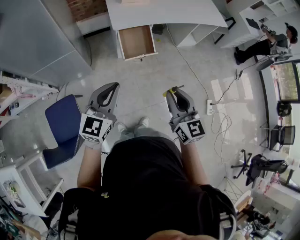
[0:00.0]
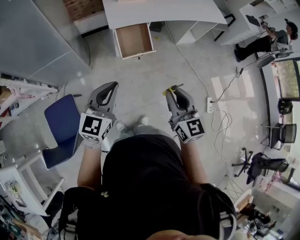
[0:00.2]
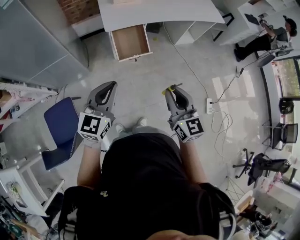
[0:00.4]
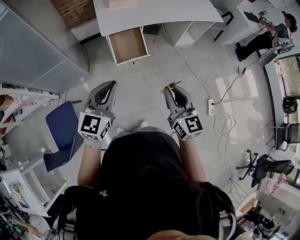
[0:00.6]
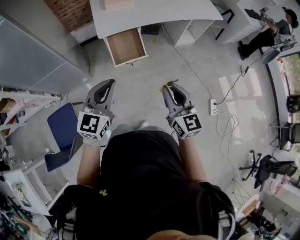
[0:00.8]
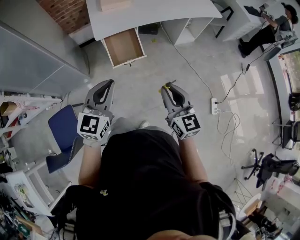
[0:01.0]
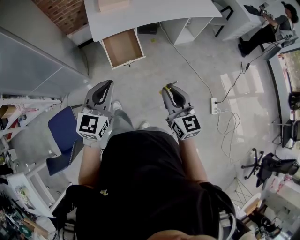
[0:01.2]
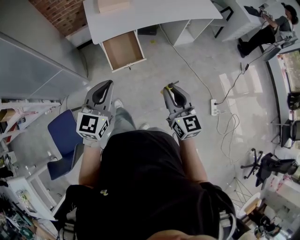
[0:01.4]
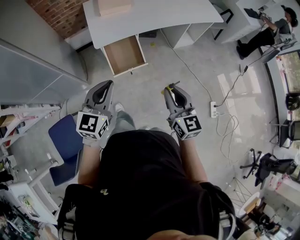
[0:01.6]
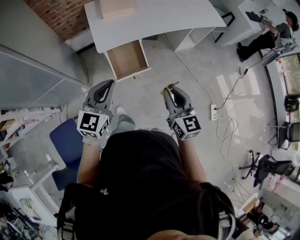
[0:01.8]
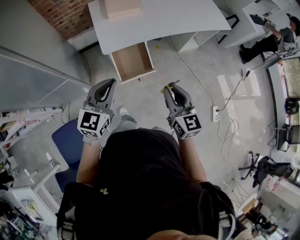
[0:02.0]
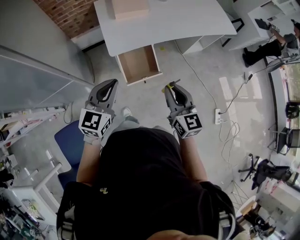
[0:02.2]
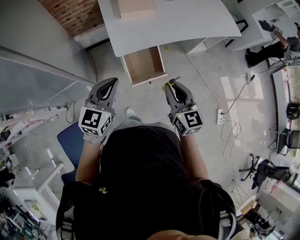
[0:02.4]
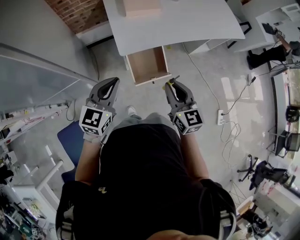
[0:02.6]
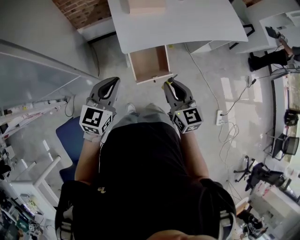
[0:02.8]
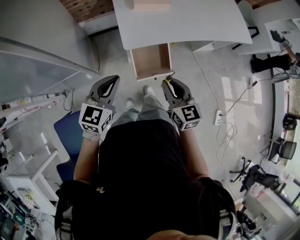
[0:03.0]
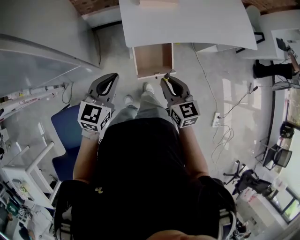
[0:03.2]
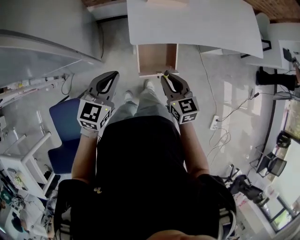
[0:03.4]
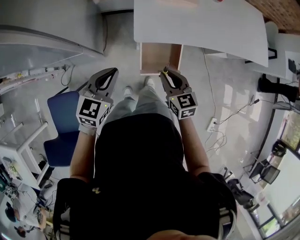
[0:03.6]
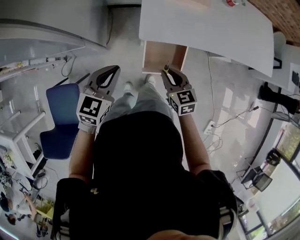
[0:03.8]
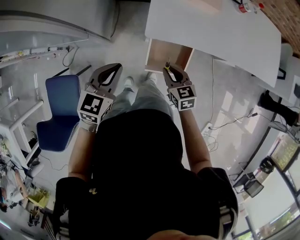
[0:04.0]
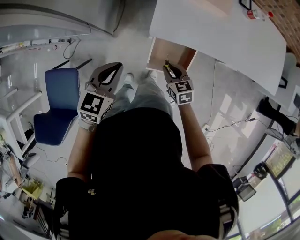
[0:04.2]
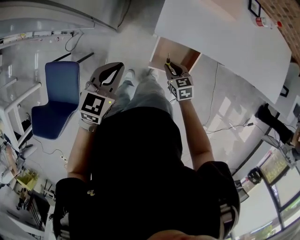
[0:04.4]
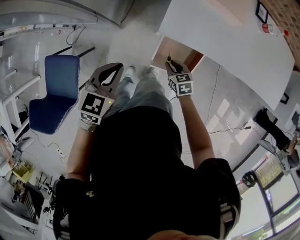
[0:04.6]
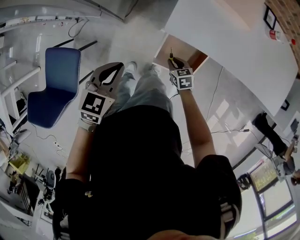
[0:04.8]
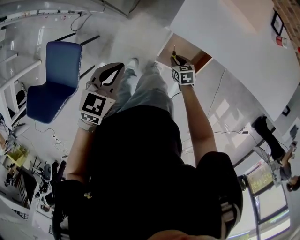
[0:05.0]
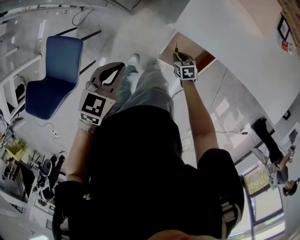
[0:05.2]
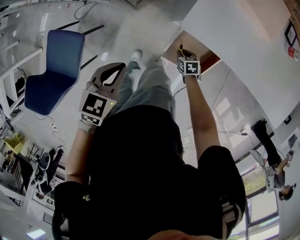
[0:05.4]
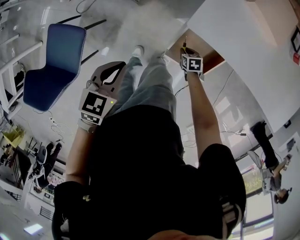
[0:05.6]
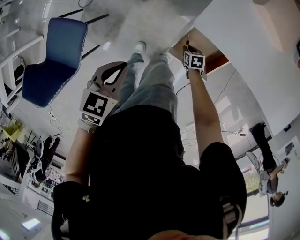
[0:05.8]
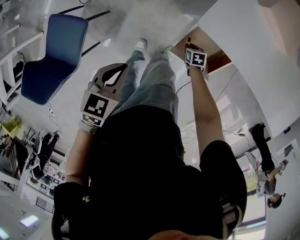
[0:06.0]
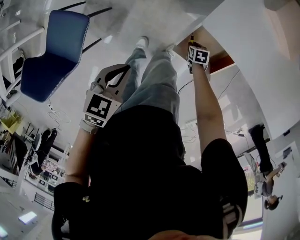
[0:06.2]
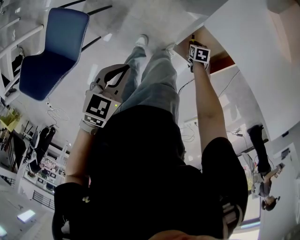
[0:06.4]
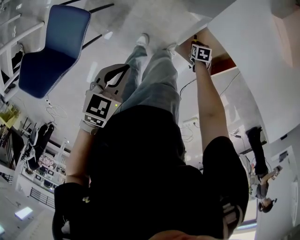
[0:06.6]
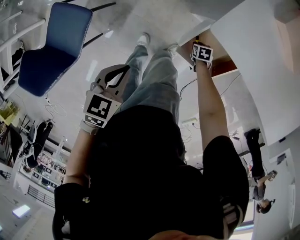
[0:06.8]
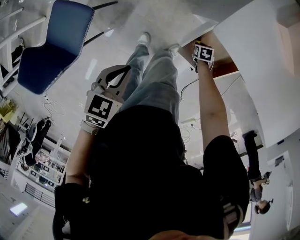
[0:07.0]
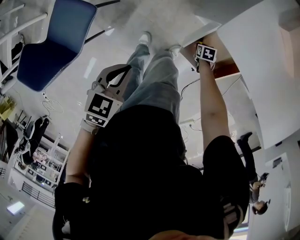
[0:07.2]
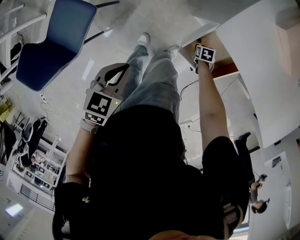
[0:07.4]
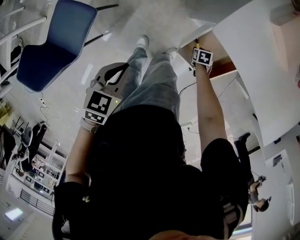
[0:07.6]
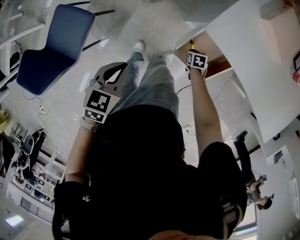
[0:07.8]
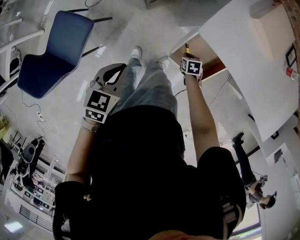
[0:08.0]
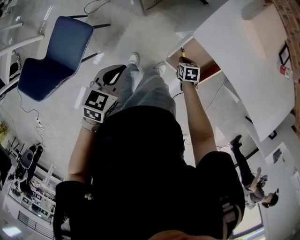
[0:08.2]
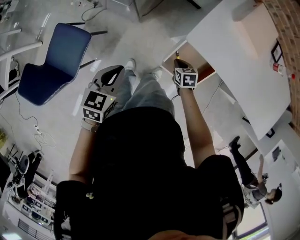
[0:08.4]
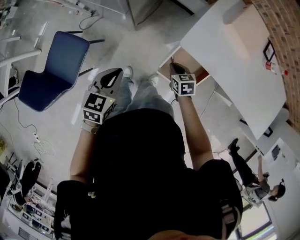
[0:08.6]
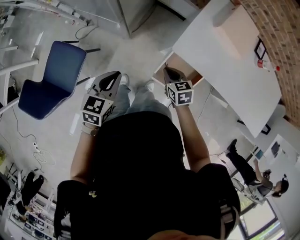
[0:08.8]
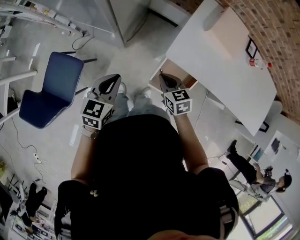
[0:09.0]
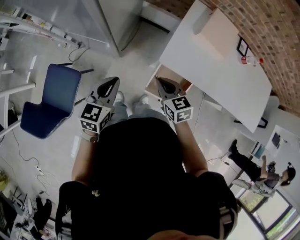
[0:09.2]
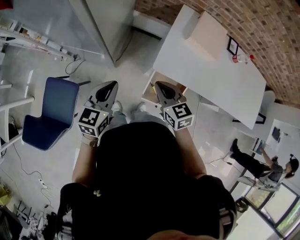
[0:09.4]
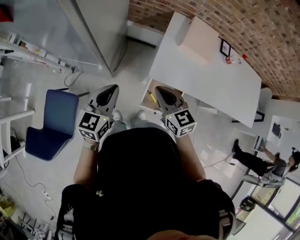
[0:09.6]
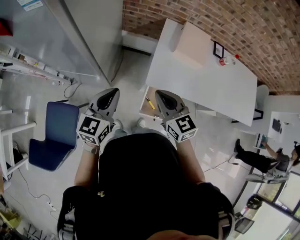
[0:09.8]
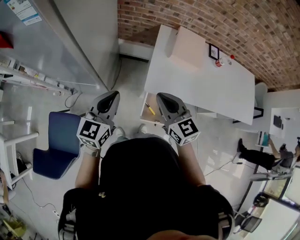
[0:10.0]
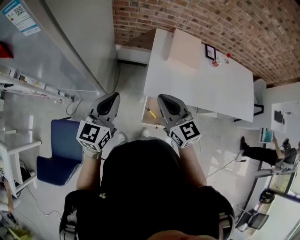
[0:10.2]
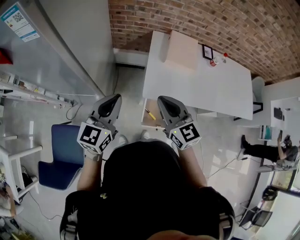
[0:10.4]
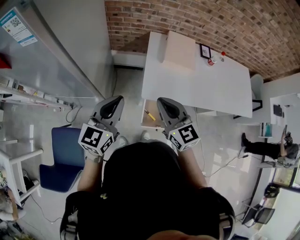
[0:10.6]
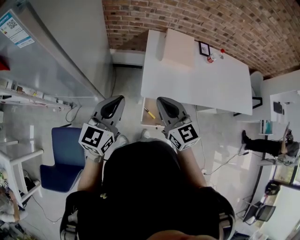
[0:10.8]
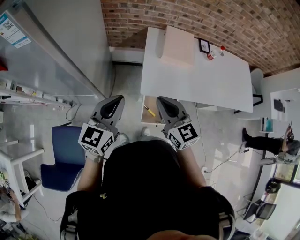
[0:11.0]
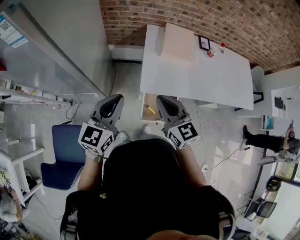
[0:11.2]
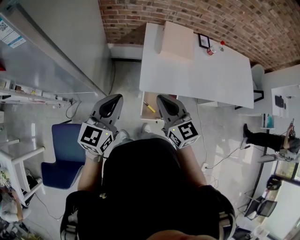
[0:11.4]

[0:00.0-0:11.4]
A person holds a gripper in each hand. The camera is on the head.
0.0 to 1.4 s: The grippers both shift to the right and forward by some 20 cm.
1.4 to 2.8 s: The grippers both shift to the left and forward by about 30 cm.
2.8 to 4.2 s: The right gripper heads downward, covering about 25 cm, and turns by some 40 degrees, while the left gripper moves downward, approximately 10 cm, and changes its angle by approximately 30 degrees.
4.2 to 5.6 s: The left gripper moves downward, some 10 cm, and rotates about 20 degrees. Meanwhile the right gripper shifts some 25 cm downward, and rotates about 30 degrees.
5.6 to 7.2 s: The right gripper travels downward by some 10 cm, while the left gripper changes place by some 10 cm.
7.2 to 8.6 s: The left gripper moves upward, approximately 10 cm. The right gripper goes about 30 cm upward, rotates some 30 degrees, and closes.
8.6 to 10.0 s: The left gripper goes roughly 25 cm upward and forward, and turns by some 30 degrees. The right gripper travels upward by some 35 cm, and points its fingers about 40 degrees further upward.
10.0 to 11.4 s: The left gripper shifts by roughly 5 cm.

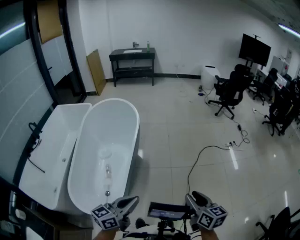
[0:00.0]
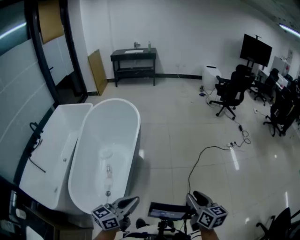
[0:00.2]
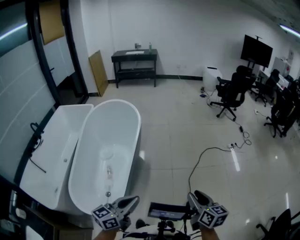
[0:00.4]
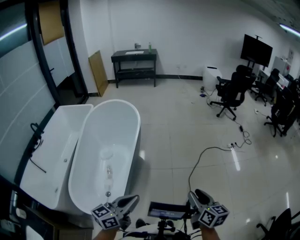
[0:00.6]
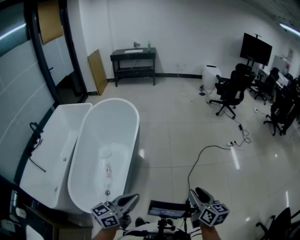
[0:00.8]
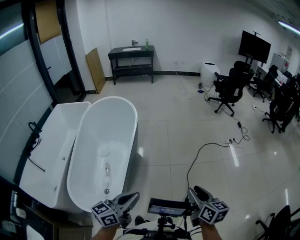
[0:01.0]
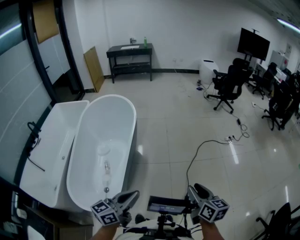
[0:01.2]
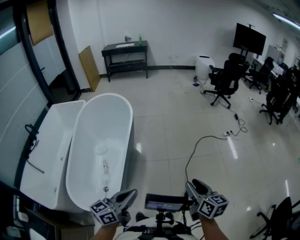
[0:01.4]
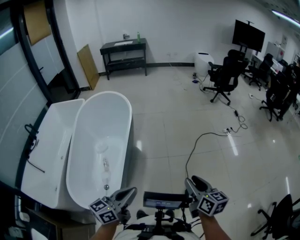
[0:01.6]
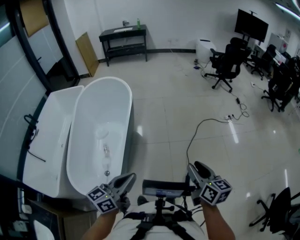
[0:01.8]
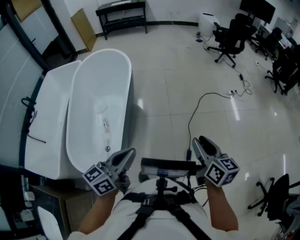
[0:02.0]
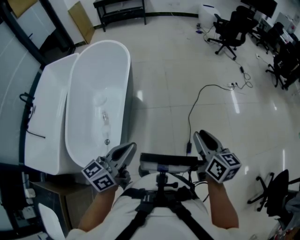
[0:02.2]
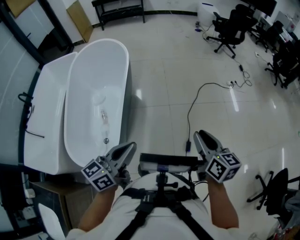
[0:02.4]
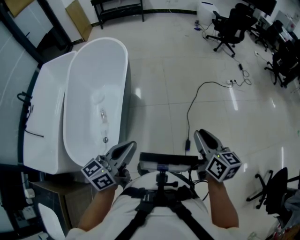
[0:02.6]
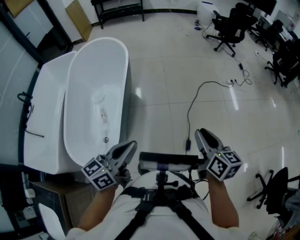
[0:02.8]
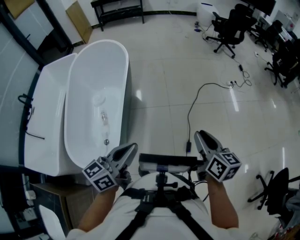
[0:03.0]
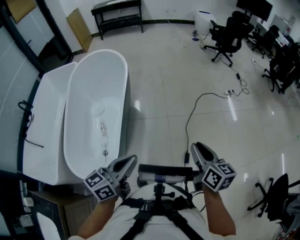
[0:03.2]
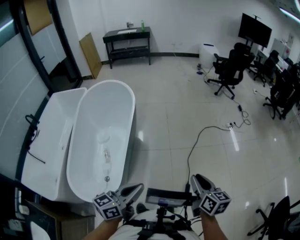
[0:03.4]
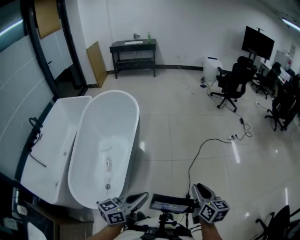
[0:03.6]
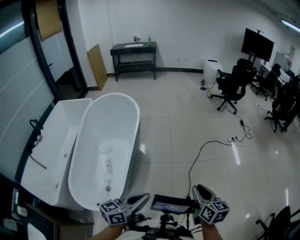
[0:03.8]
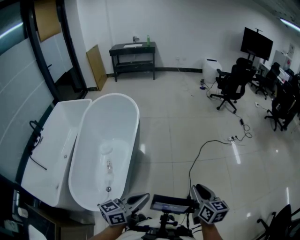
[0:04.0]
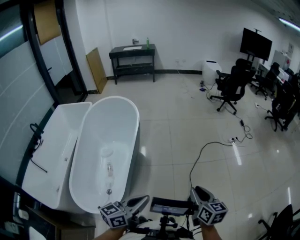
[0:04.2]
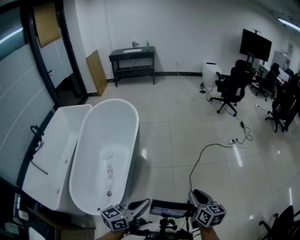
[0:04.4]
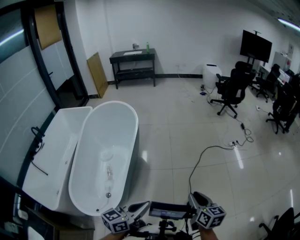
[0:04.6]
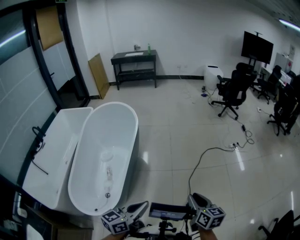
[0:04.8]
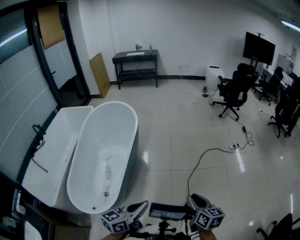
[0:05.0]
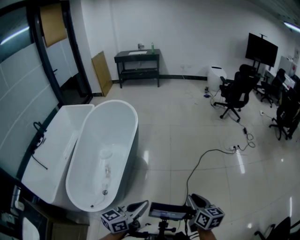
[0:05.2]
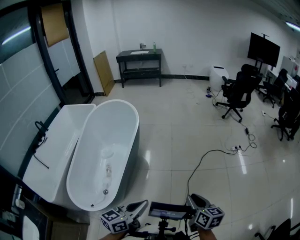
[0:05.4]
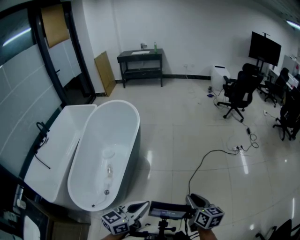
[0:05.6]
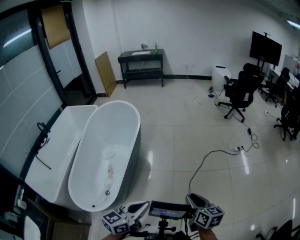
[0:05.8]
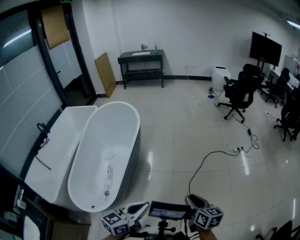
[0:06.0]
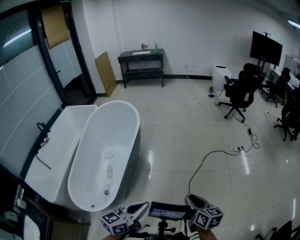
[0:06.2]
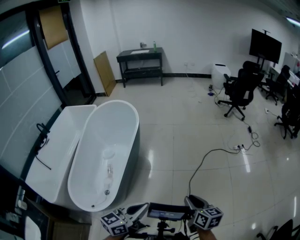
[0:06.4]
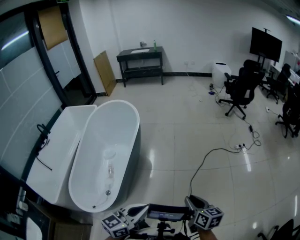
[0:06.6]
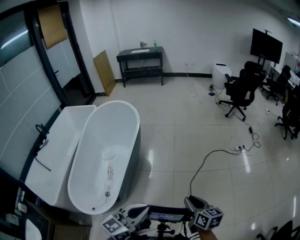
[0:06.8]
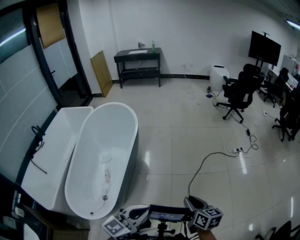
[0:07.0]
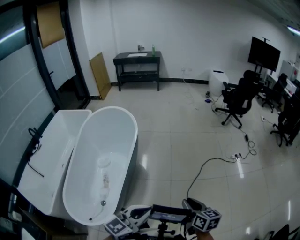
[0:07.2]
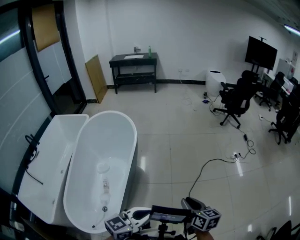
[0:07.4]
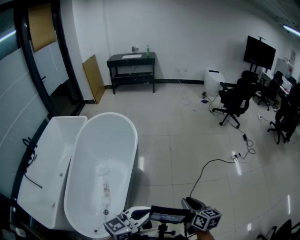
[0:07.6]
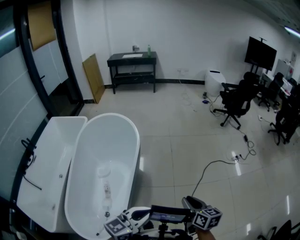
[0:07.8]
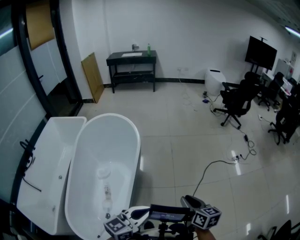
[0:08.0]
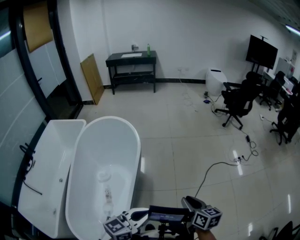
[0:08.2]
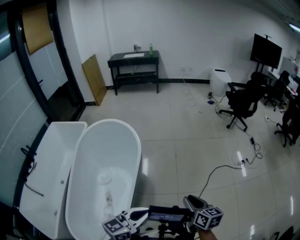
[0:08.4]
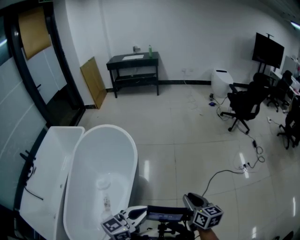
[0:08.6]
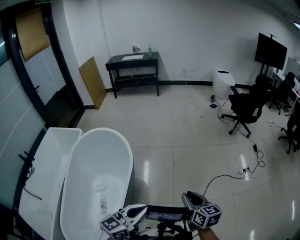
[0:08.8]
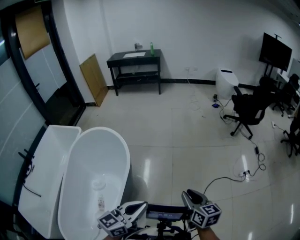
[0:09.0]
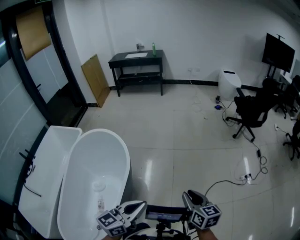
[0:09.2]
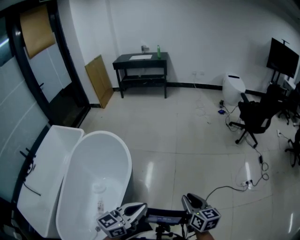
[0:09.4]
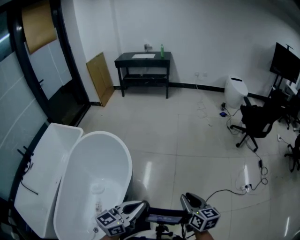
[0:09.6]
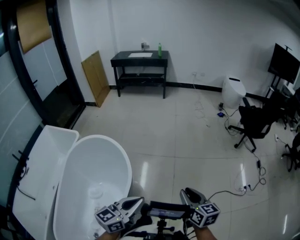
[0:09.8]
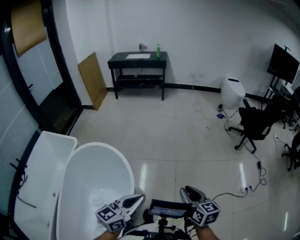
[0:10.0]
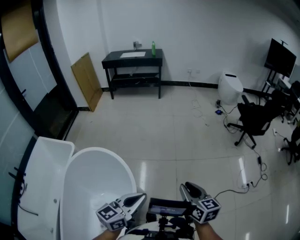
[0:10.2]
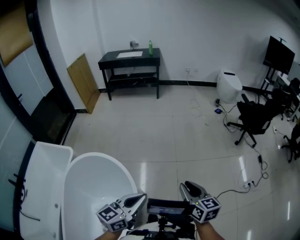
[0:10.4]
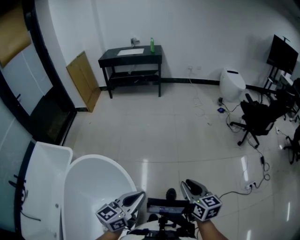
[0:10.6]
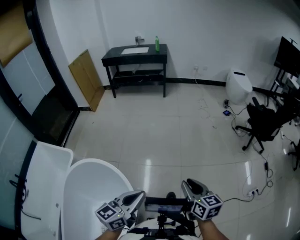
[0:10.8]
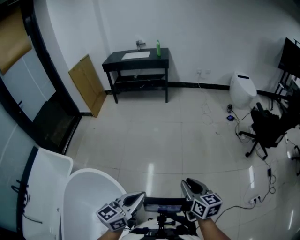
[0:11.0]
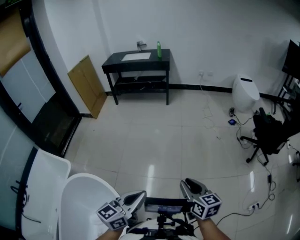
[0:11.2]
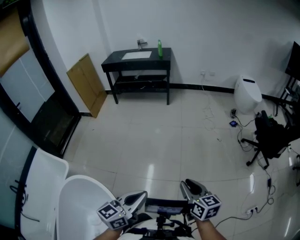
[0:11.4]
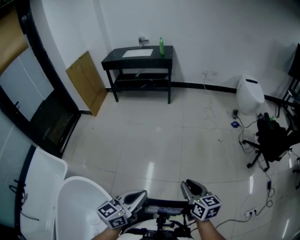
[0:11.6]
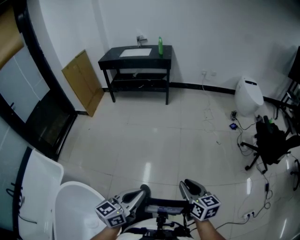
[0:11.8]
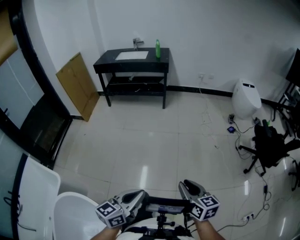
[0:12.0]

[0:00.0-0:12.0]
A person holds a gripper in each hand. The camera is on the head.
0.0 to 3.0 s: The grippers make only small movements.
3.0 to 4.4 s: The grippers make only small movements.
4.4 to 6.0 s: Both grippers move to the right, about 5 cm.
6.0 to 7.6 s: The grippers both shift forward and to the left by approximately 15 cm.
7.6 to 9.0 s: Both grippers travel together forward, about 30 cm.
9.0 to 10.4 s: The grippers both shift forward and to the left by approximately 30 cm.
10.4 to 12.0 s: The pair of grippers is taken forward, roughly 40 cm.

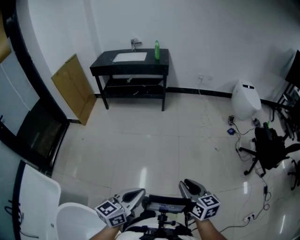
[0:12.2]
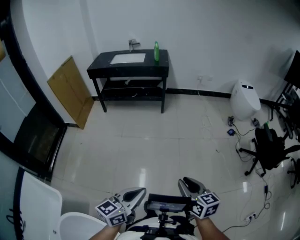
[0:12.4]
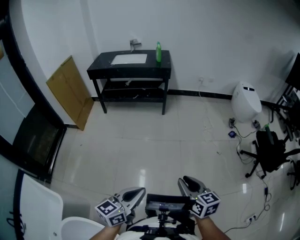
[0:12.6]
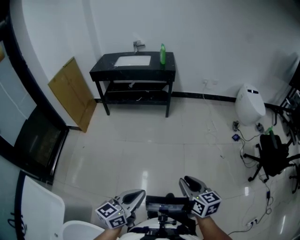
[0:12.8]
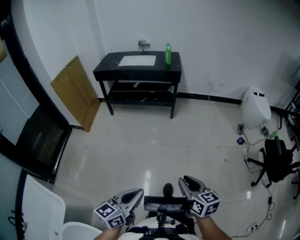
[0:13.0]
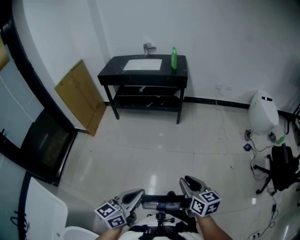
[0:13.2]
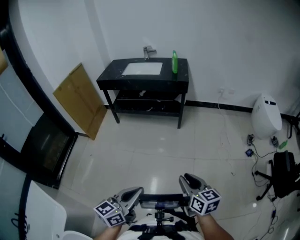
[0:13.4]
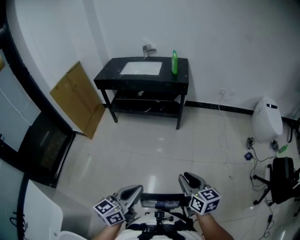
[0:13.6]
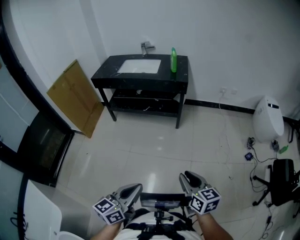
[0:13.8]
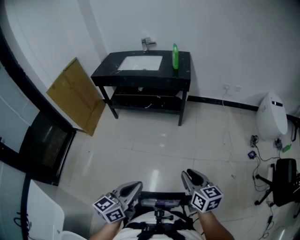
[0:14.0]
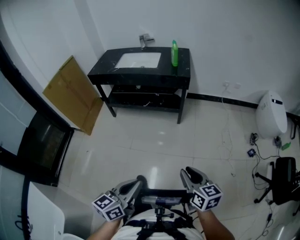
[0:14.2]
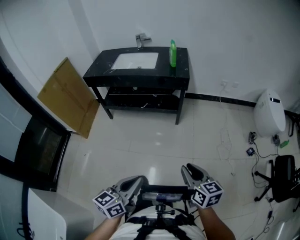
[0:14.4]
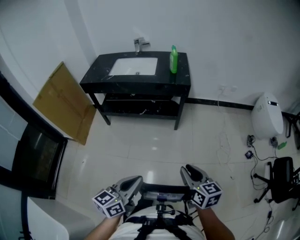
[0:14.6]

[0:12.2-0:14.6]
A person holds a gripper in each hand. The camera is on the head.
12.2 to 13.4 s: Both grippers move forward, approximately 30 cm.
13.4 to 14.6 s: The two grippers go roughly 25 cm forward.
